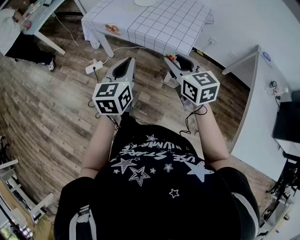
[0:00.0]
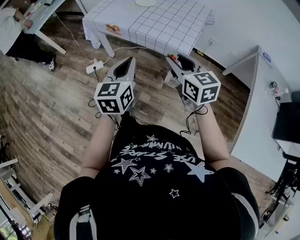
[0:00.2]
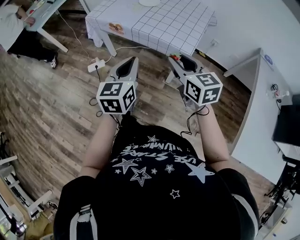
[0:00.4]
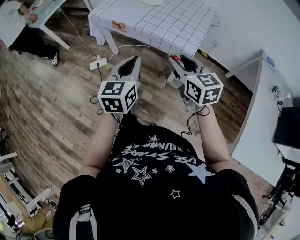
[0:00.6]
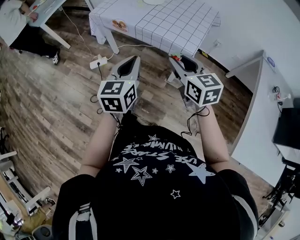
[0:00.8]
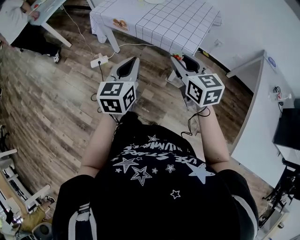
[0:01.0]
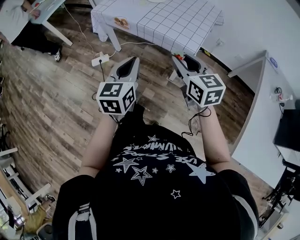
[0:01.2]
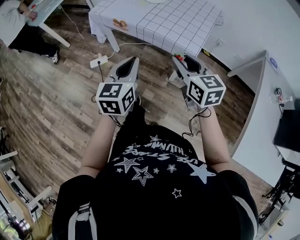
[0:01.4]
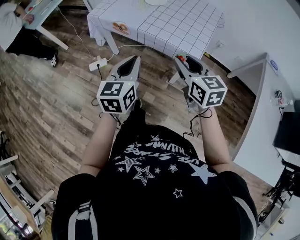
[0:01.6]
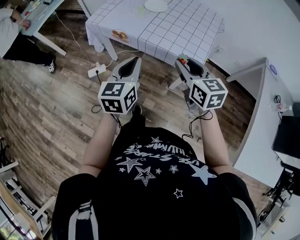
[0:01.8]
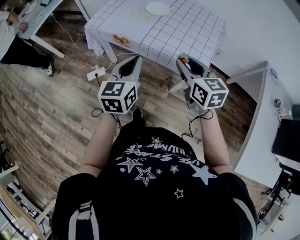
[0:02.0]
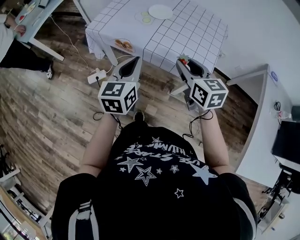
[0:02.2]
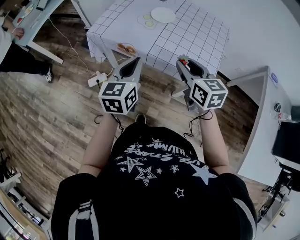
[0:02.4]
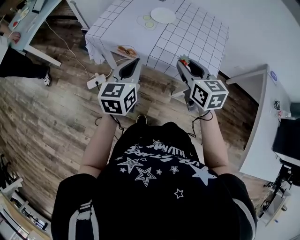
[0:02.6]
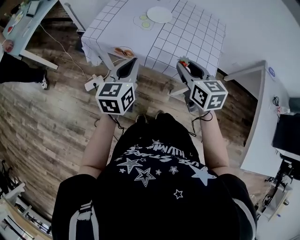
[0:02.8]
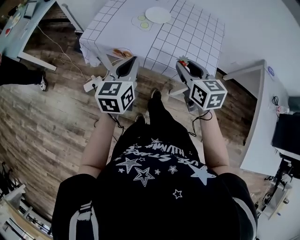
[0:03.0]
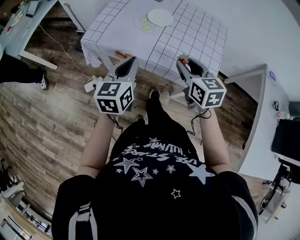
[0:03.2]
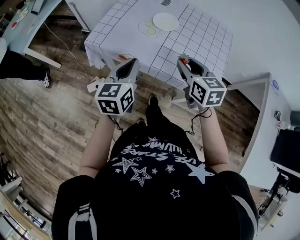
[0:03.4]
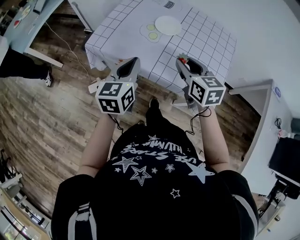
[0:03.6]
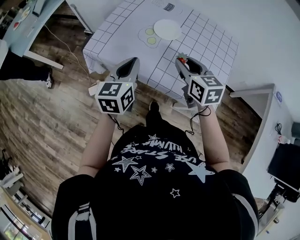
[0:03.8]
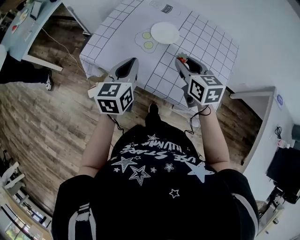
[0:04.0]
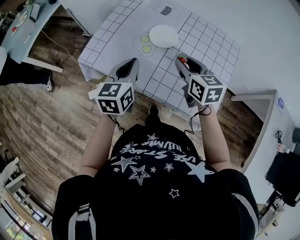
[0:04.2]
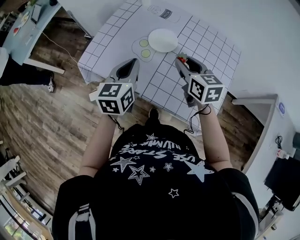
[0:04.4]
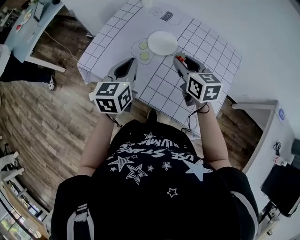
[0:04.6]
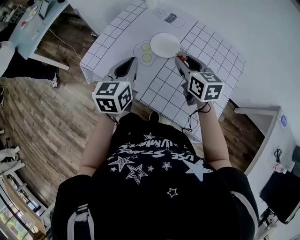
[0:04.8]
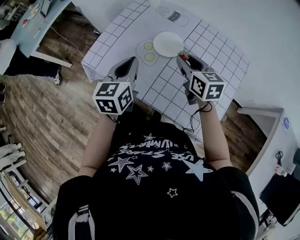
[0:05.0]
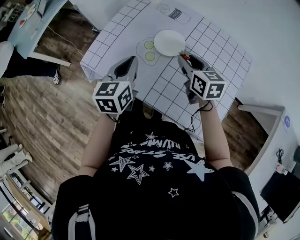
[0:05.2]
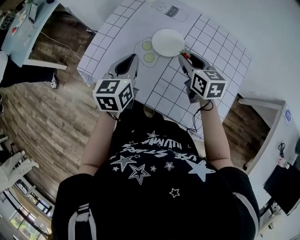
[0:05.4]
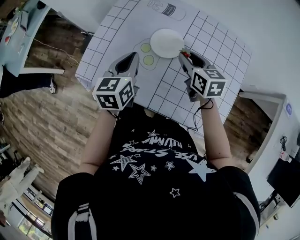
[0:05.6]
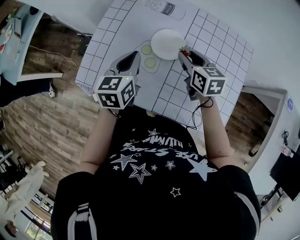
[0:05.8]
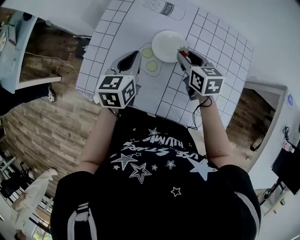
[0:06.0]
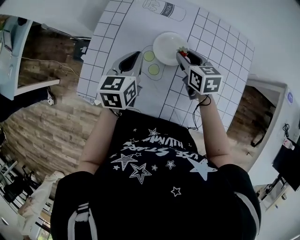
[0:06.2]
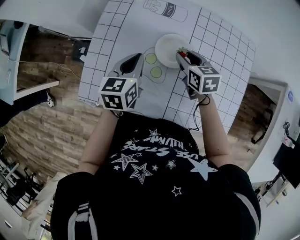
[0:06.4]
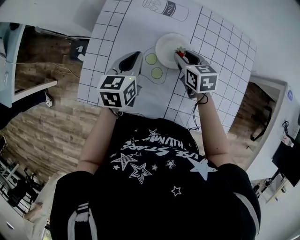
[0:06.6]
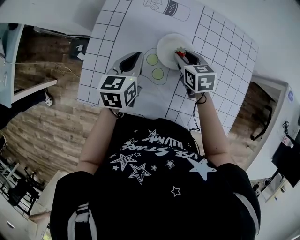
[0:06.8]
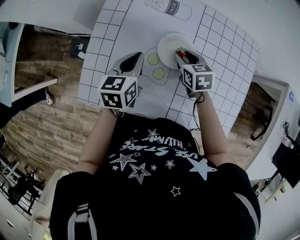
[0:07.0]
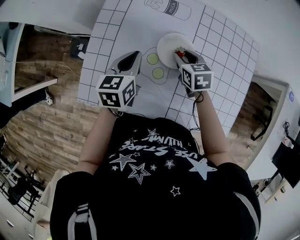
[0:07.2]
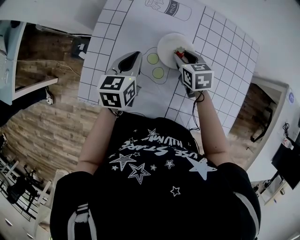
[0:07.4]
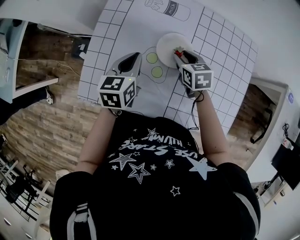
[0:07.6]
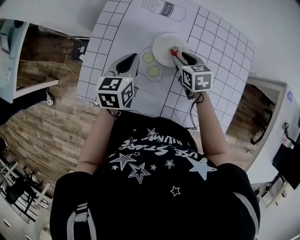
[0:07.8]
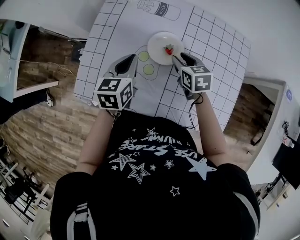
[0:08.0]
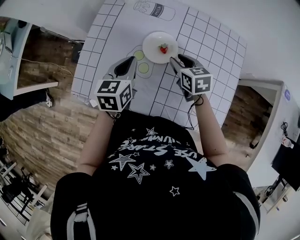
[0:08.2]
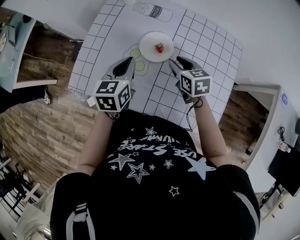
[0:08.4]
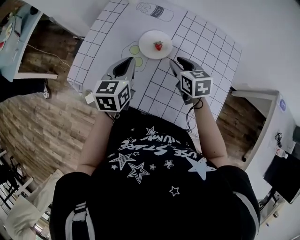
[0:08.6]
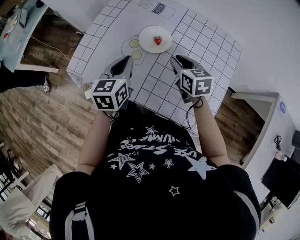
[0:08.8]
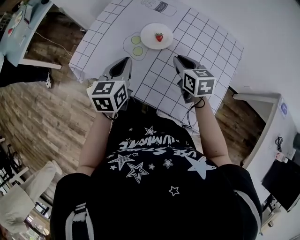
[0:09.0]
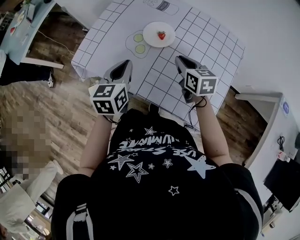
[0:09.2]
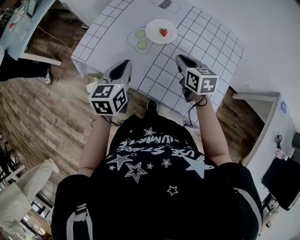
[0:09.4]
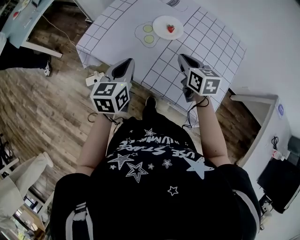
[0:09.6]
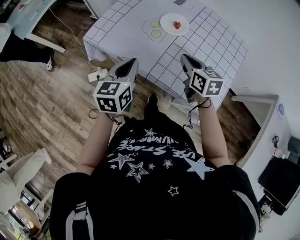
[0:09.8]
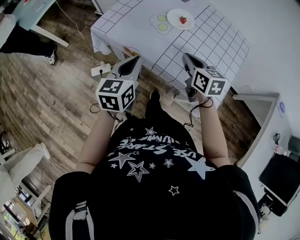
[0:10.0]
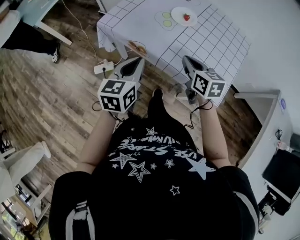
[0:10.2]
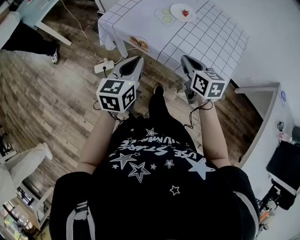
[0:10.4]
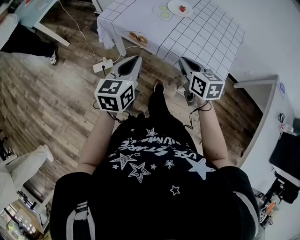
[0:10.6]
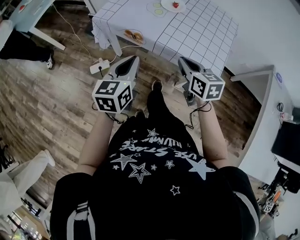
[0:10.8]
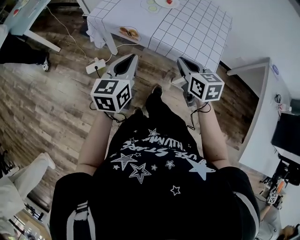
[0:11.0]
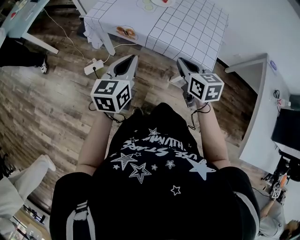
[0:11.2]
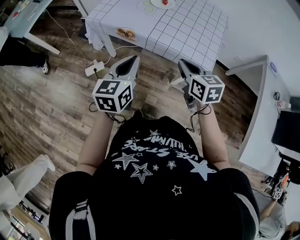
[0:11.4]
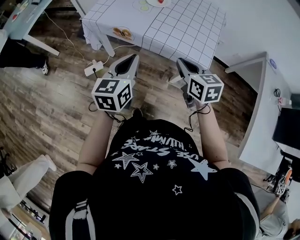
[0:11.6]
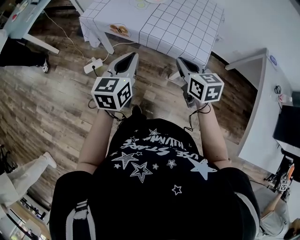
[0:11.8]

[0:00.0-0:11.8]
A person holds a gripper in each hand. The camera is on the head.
0.0 to 1.4 s: The grippers make only small movements.
1.4 to 3.0 s: The grippers both shift forward by roughly 25 cm.
3.0 to 4.4 s: The grippers both shift forward by some 20 cm.
4.4 to 6.0 s: The grippers both shift forward and downward by about 15 cm.
6.0 to 7.4 s: The right gripper heads downward, covering approximately 5 cm, while the left gripper shifts by some 5 cm.
7.4 to 8.8 s: Both grippers travel together backward, upward and to the right, roughly 15 cm.
8.8 to 10.4 s: The two grippers go about 25 cm backward and to the left. The right gripper closes its fingers.
10.4 to 11.8 s: The left gripper is displaced backward and to the right by about 10 cm, while the right gripper moves backward, approximately 15 cm.

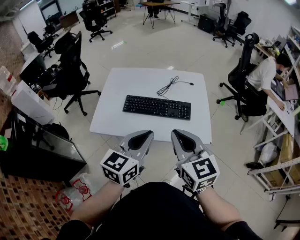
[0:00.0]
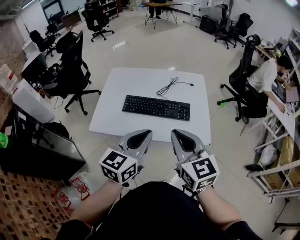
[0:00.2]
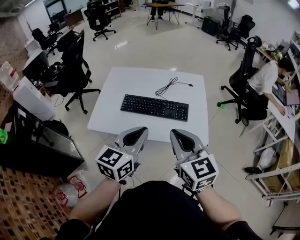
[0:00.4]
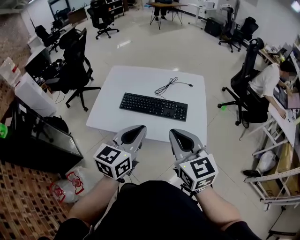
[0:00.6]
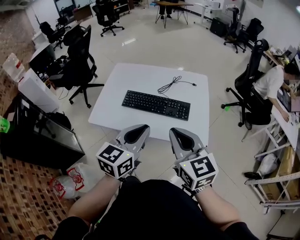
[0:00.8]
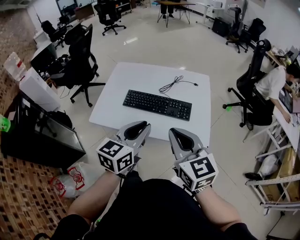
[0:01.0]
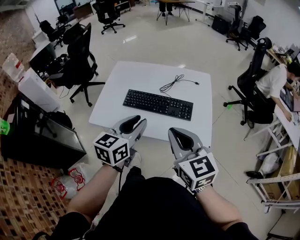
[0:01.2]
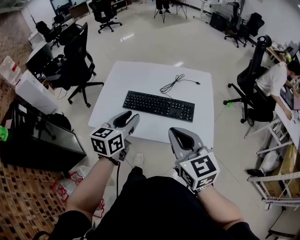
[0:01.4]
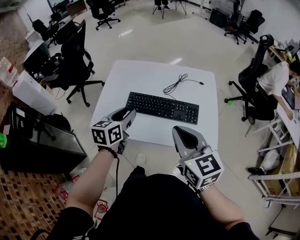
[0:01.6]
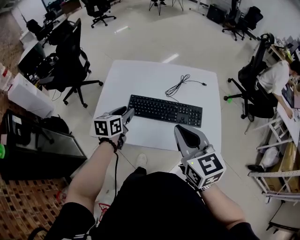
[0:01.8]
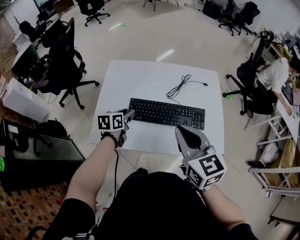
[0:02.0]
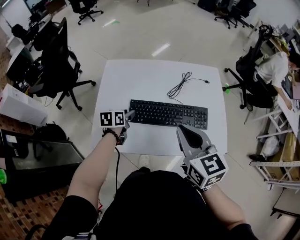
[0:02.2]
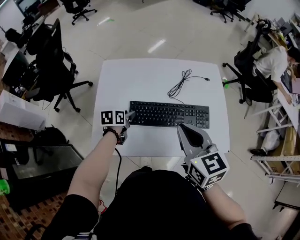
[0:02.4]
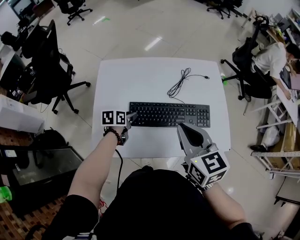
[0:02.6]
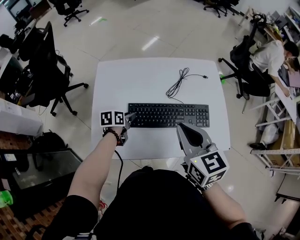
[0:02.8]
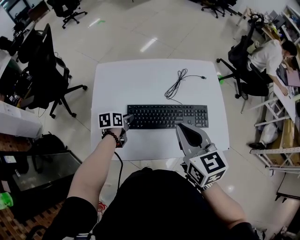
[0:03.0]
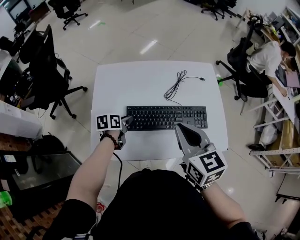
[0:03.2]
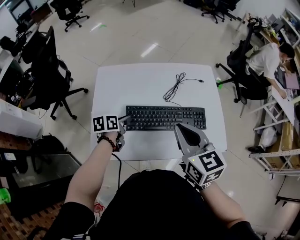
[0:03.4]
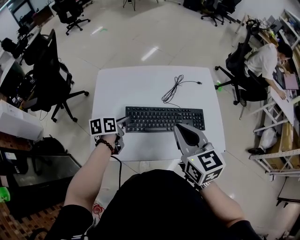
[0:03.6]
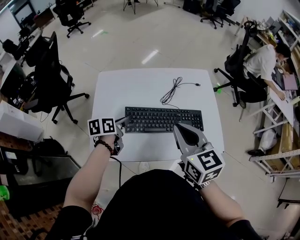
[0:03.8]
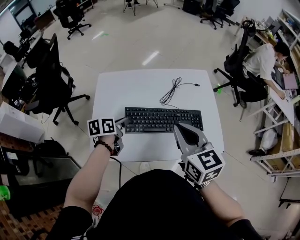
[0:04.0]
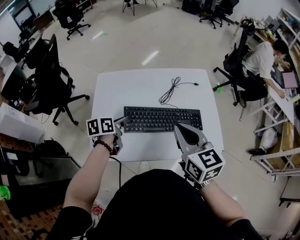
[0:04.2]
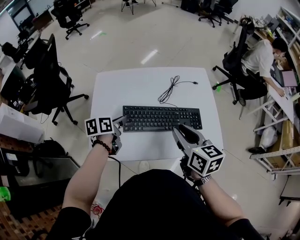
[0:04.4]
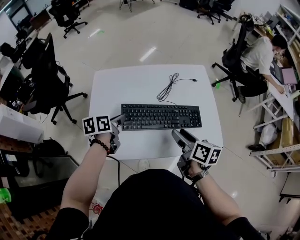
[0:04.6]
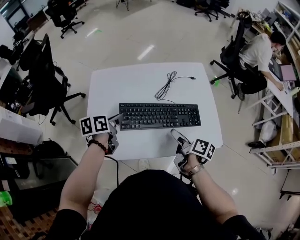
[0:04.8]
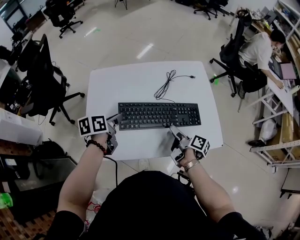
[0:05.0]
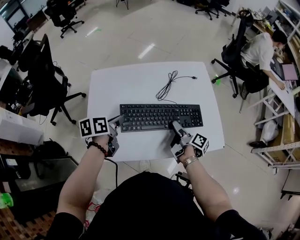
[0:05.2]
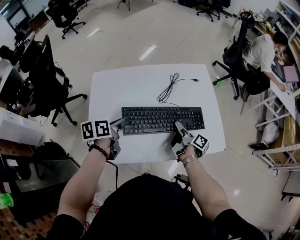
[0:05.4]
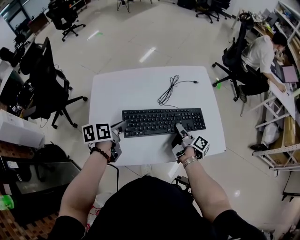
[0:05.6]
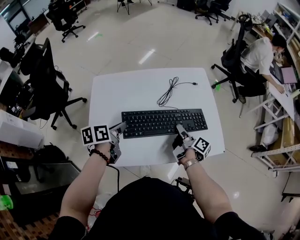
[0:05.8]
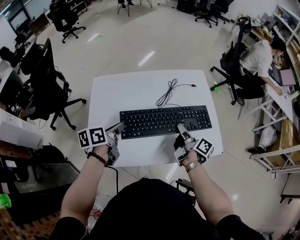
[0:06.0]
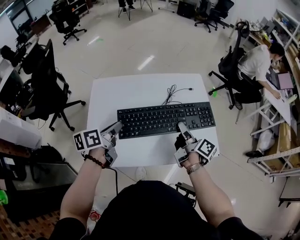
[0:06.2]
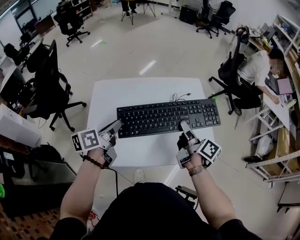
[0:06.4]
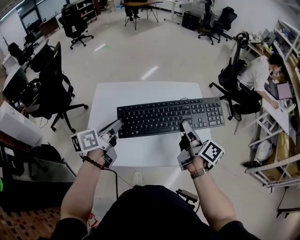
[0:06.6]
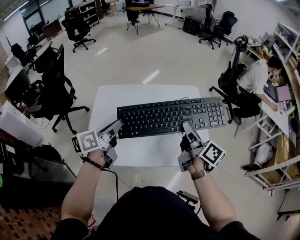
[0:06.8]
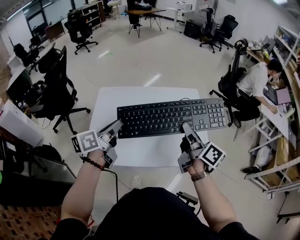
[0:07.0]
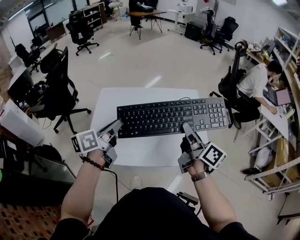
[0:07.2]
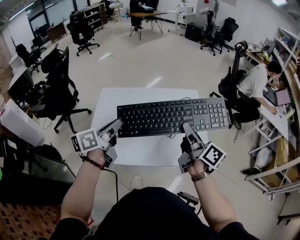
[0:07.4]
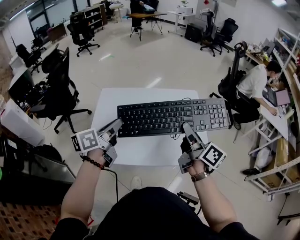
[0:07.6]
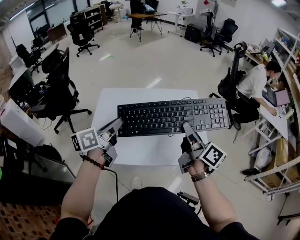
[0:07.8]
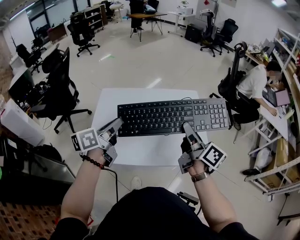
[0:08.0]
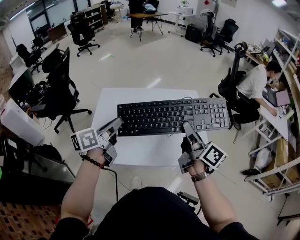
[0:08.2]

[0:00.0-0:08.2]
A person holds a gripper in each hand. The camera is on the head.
0.0 to 1.6 s: The right gripper moves forward, roughly 5 cm. Meanwhile the left gripper moves forward, to the left and downward, approximately 20 cm, rotates roughly 20 degrees, and opens its fingers.
1.6 to 3.2 s: The left gripper is displaced downward, forward and to the left by approximately 25 cm, and rotates about 30 degrees, while the right gripper moves forward and to the left, about 15 cm.
3.2 to 5.0 s: The left gripper heads upward, covering approximately 10 cm. The right gripper goes roughly 20 cm downward, rolls clockwise, seen from behind, by roughly 70 degrees, and opens.
5.0 to 6.6 s: The left gripper is displaced upward by roughly 15 cm, and rotates approximately 20 degrees. Meanwhile the right gripper travels upward by approximately 20 cm, turns by about 30 degrees, and closes its fingers.
6.6 to 8.2 s: Both grippers move upward, roughly 5 cm.

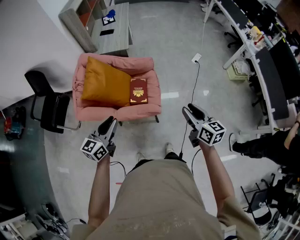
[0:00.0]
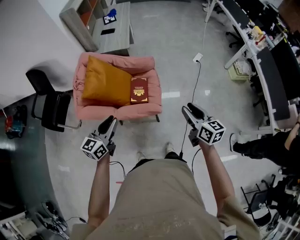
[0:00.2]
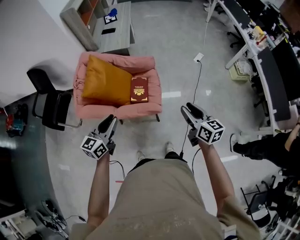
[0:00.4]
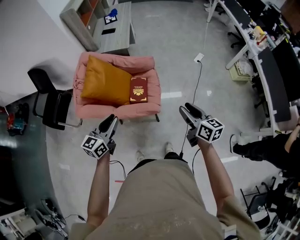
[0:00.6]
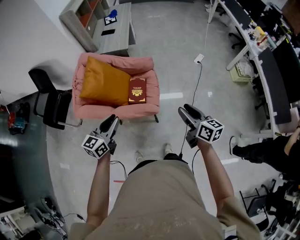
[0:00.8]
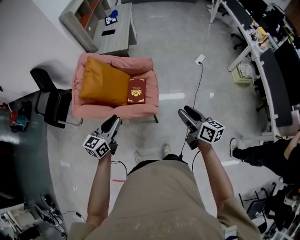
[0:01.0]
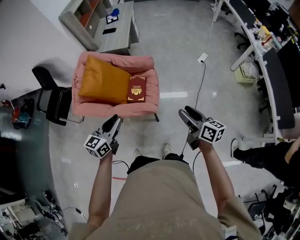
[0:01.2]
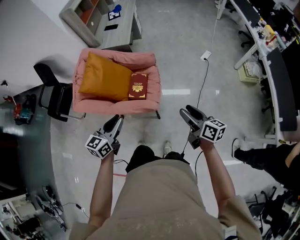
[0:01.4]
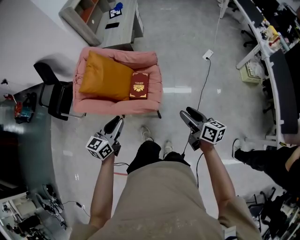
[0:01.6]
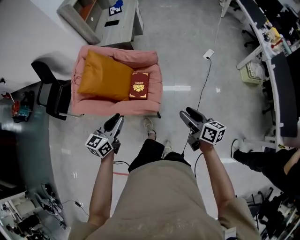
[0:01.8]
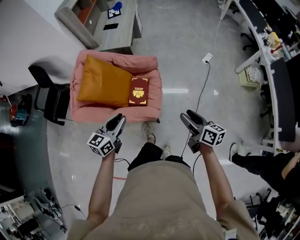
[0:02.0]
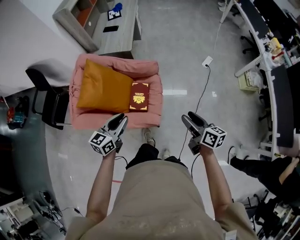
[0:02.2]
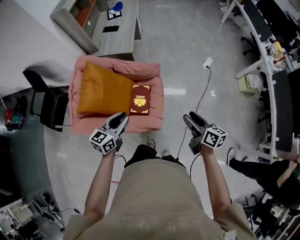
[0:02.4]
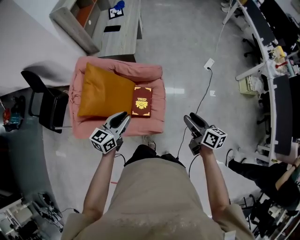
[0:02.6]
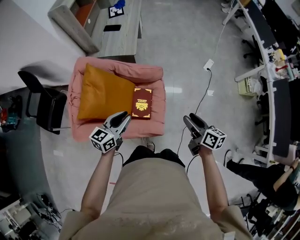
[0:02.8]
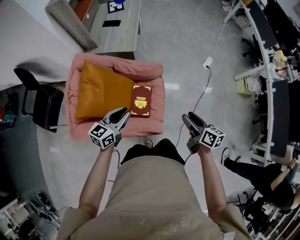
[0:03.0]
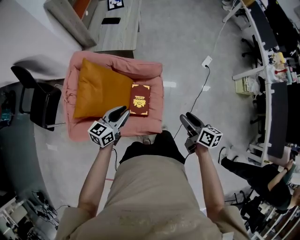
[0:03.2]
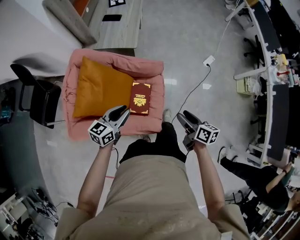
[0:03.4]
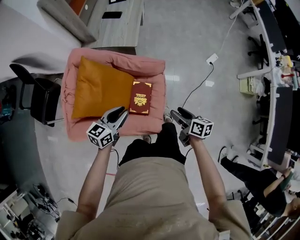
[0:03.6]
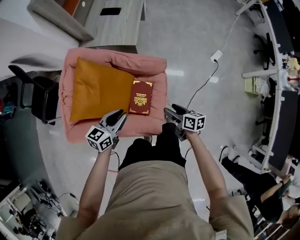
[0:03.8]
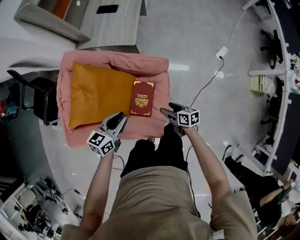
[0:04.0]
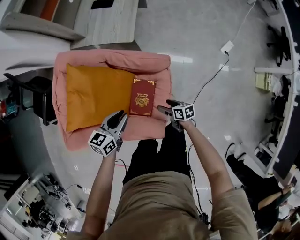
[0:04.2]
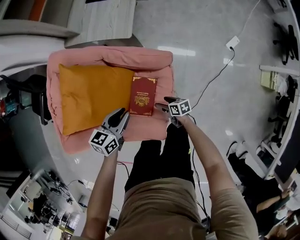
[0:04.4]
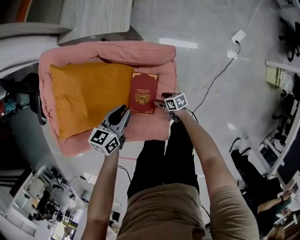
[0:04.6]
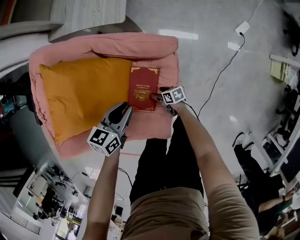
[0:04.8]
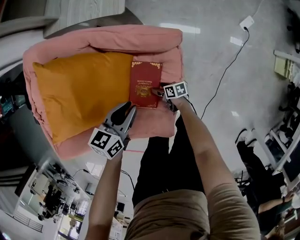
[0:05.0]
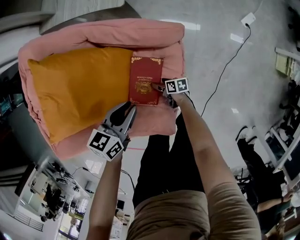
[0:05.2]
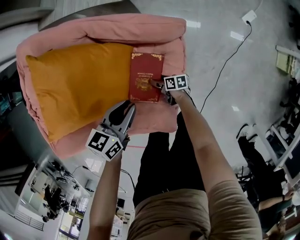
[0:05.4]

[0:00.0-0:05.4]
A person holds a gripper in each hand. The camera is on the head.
0.0 to 1.4 s: The two grippers go approximately 10 cm to the right. The right gripper changes its angle by about 20 degrees.
1.4 to 2.8 s: The left gripper heads forward, covering approximately 30 cm, while the right gripper moves forward and to the left, some 25 cm.
2.8 to 4.0 s: The right gripper heads downward and forward, covering approximately 30 cm, and turns by approximately 30 degrees. Meanwhile the left gripper moves downward and forward, roughly 15 cm.
4.0 to 5.4 s: The right gripper shifts about 35 cm downward, and changes its angle by about 20 degrees. The left gripper travels downward by about 20 cm.
